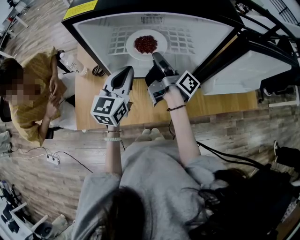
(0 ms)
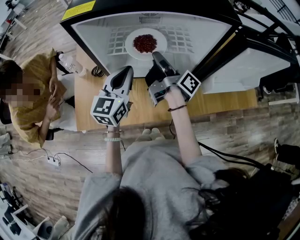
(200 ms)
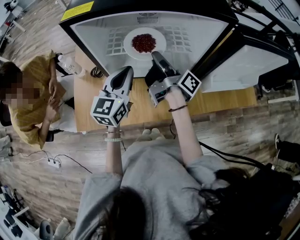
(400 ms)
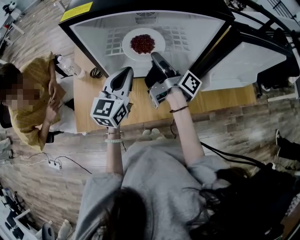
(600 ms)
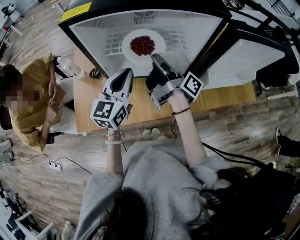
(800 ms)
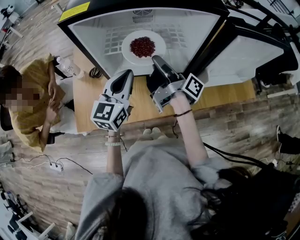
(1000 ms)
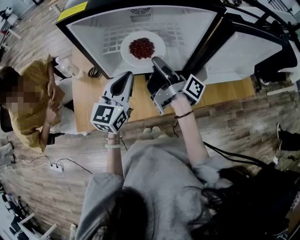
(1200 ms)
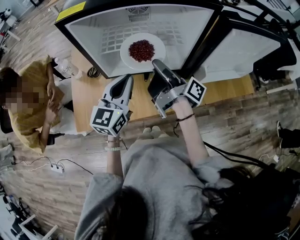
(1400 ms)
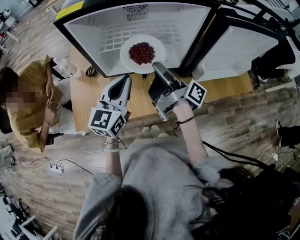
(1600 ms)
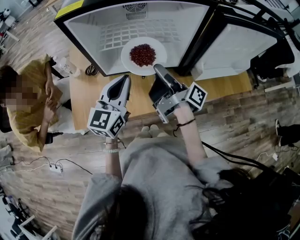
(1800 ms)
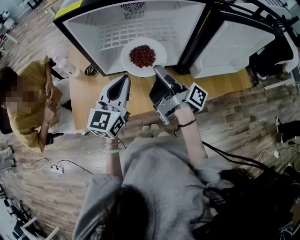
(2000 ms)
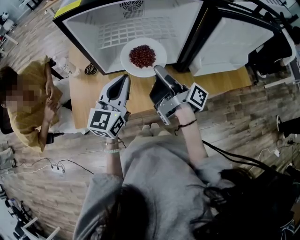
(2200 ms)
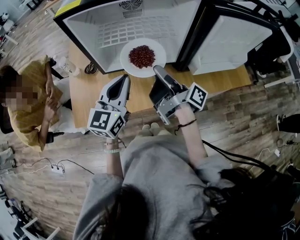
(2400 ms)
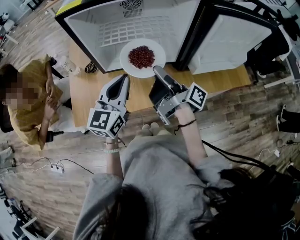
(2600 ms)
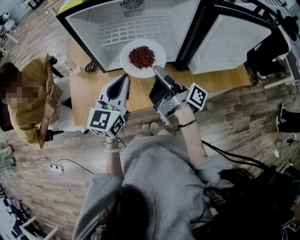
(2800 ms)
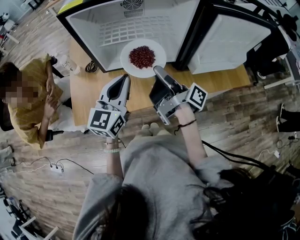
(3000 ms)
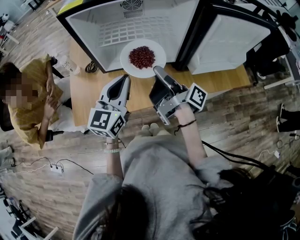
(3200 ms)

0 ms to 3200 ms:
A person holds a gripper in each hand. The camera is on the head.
0 ms to 1600 ms: The two grippers go about 10 cm backward.
1600 ms to 3200 ms: The right gripper heads backward, covering approximately 5 cm.

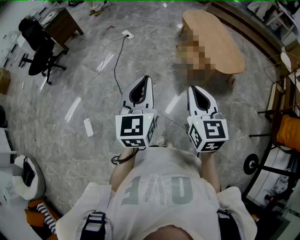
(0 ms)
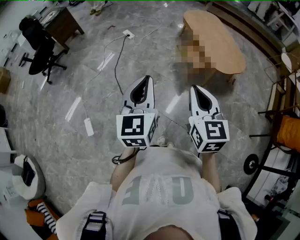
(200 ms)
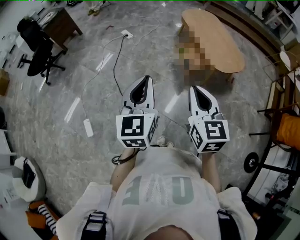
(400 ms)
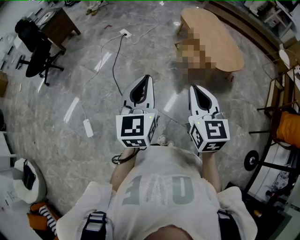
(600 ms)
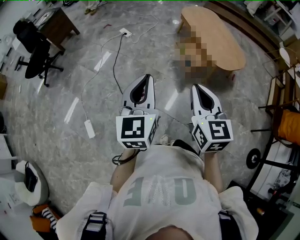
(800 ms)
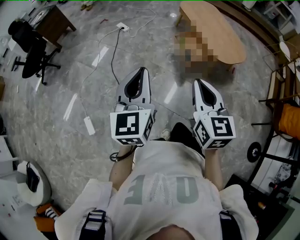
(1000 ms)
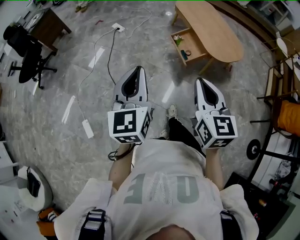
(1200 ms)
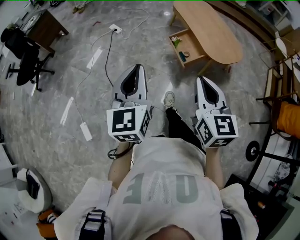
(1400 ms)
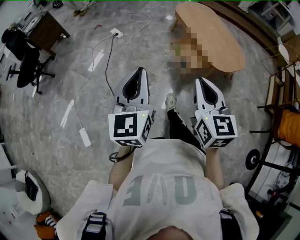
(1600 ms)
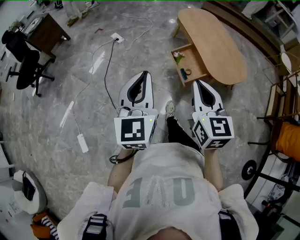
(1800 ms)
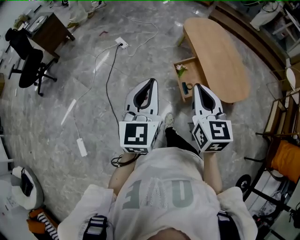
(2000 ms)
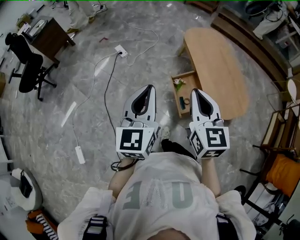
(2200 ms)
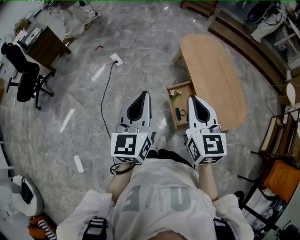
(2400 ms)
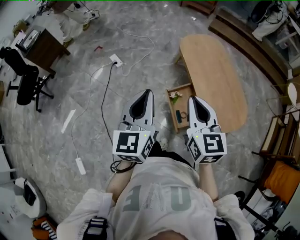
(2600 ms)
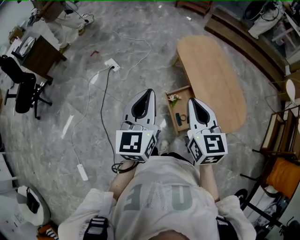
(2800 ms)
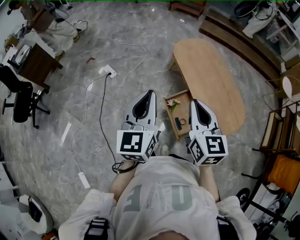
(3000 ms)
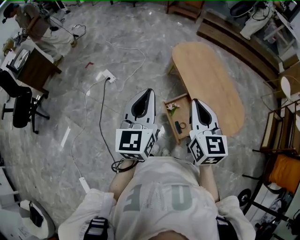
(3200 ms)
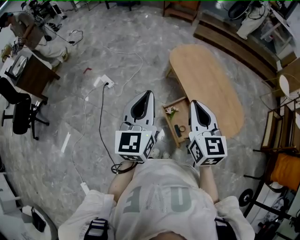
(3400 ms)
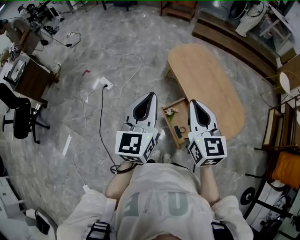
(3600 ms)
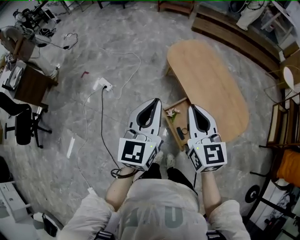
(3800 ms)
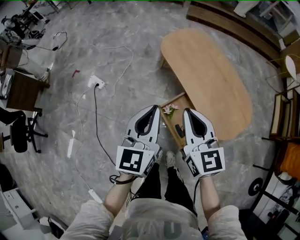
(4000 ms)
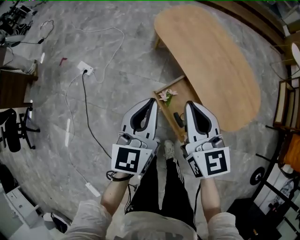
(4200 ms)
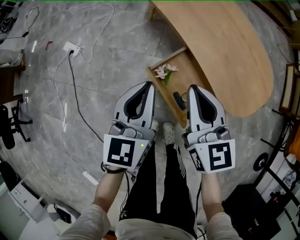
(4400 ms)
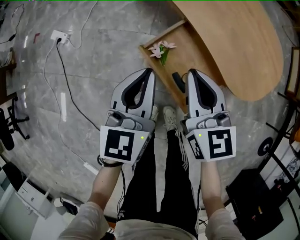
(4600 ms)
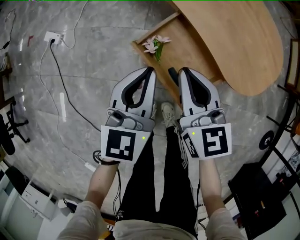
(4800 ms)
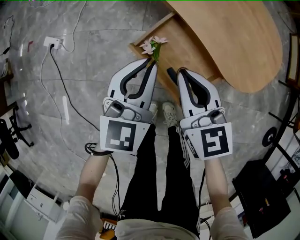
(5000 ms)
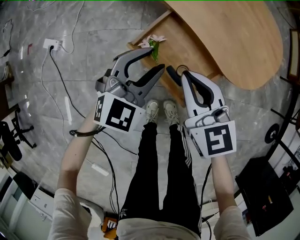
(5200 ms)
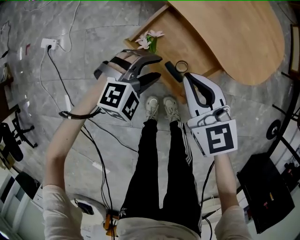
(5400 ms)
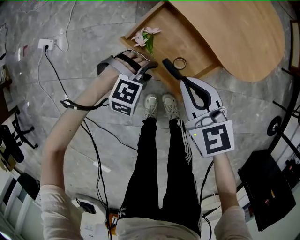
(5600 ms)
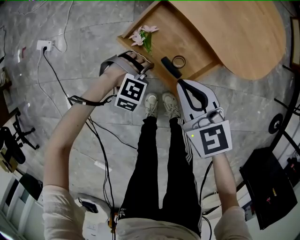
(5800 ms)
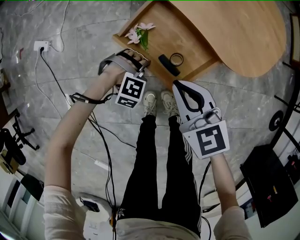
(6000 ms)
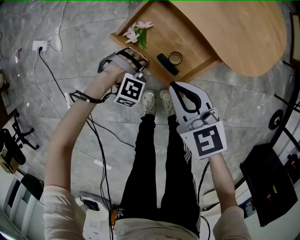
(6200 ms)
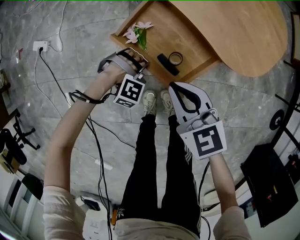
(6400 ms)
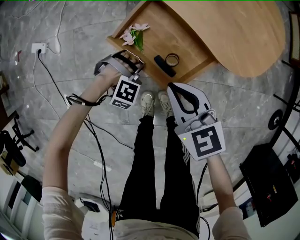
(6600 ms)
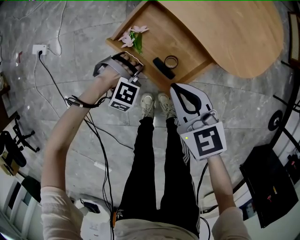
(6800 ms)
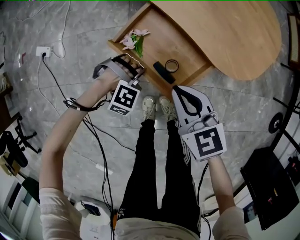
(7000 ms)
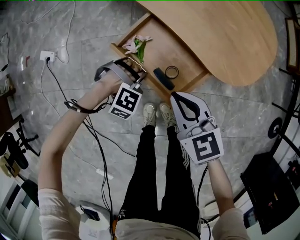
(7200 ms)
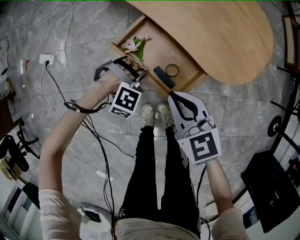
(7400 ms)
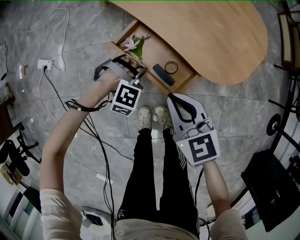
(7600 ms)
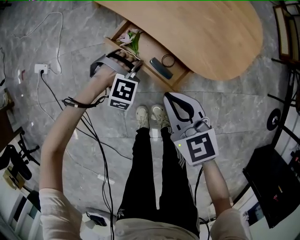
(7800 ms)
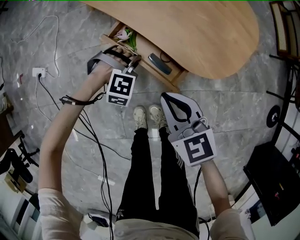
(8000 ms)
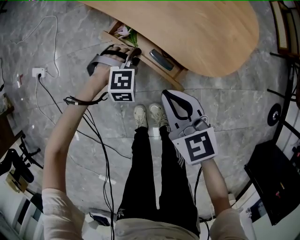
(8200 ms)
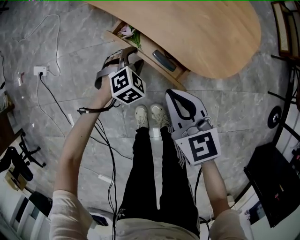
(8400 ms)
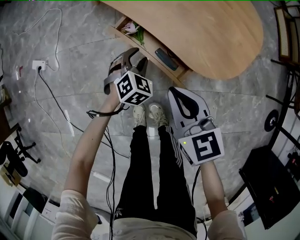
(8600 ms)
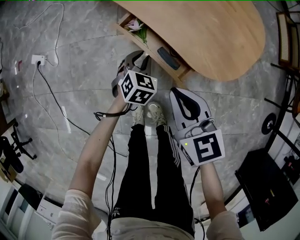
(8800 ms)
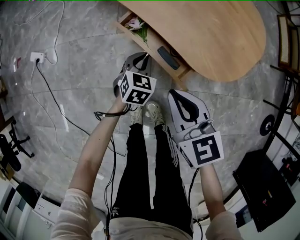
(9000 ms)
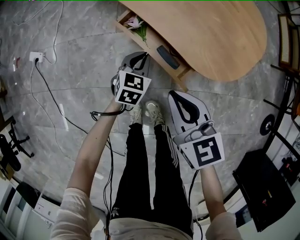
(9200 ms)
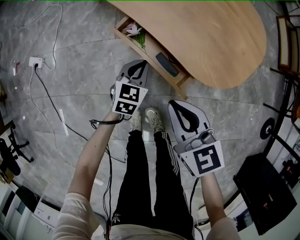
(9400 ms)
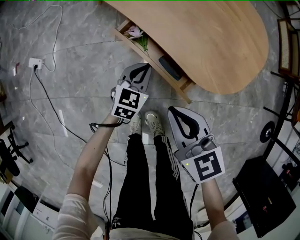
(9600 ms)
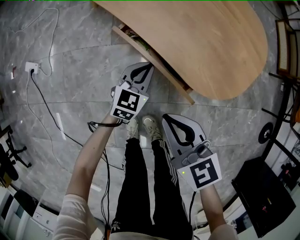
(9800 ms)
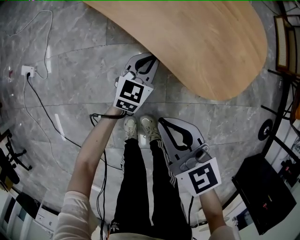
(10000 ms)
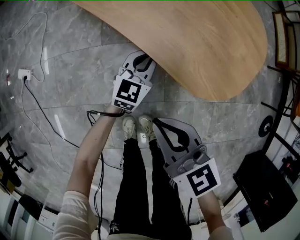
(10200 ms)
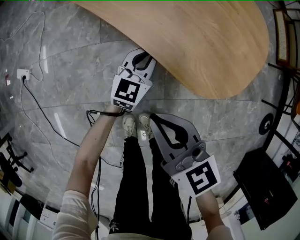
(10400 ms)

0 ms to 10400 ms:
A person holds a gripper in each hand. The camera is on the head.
0 ms to 1400 ms: The two grippers go some 5 cm forward.
1400 ms to 3000 ms: Both grippers are carried forward, about 50 cm.
3000 ms to 4400 ms: The two grippers go approximately 35 cm downward and forward. The left gripper swivels about 20 degrees.
4400 ms to 6000 ms: The right gripper travels downward by about 20 cm. Meanwhile the left gripper goes some 40 cm downward, angles its fingers downward, by some 60 degrees, and opens its fingers.
6000 ms to 7400 ms: The left gripper is displaced upward by about 5 cm, and closes.
7400 ms to 9000 ms: The right gripper changes place by about 5 cm, while the left gripper shifts by approximately 10 cm, rotates around the line of its fingers by roughly 90 degrees, counterclockwise from behind, and opens, then closes again.
9000 ms to 10400 ms: The left gripper is displaced forward and to the right by some 10 cm, and rotates roughly 30 degrees.

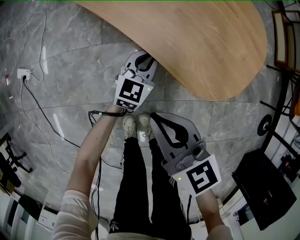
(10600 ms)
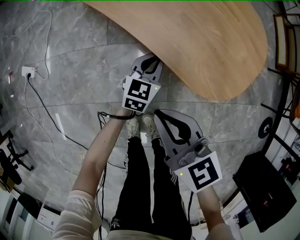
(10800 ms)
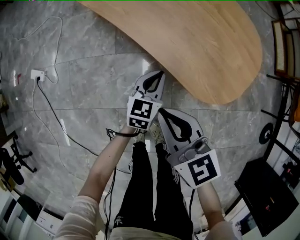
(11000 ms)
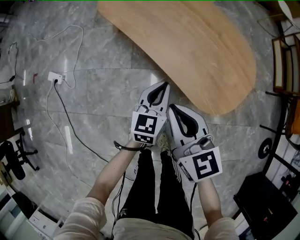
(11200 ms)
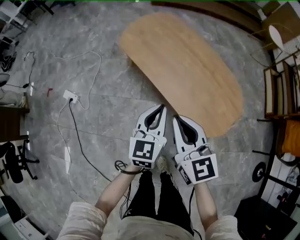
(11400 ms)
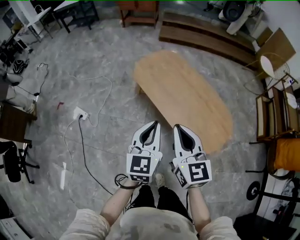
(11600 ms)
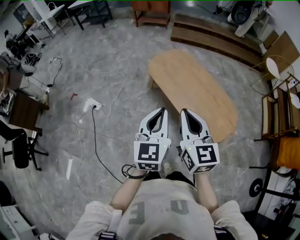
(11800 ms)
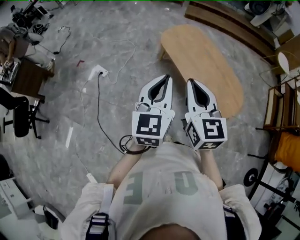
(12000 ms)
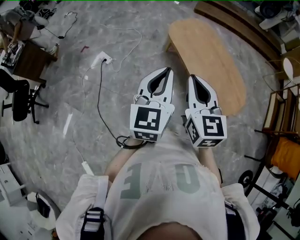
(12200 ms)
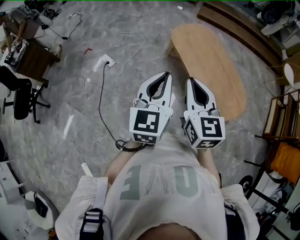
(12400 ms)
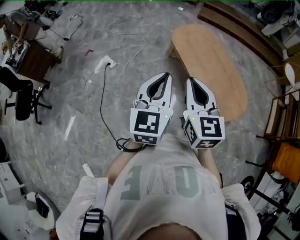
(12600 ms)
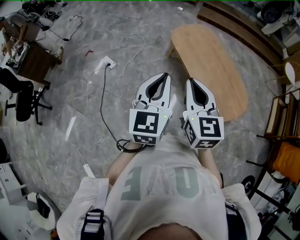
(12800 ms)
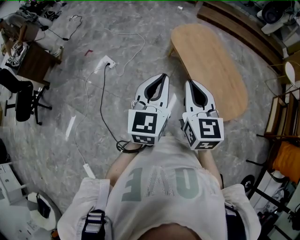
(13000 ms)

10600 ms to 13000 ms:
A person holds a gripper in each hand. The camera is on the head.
10600 ms to 11800 ms: The grippers both shift upward by about 50 cm. The left gripper rotates some 40 degrees. Meanwhile the right gripper swivels about 20 degrees.
11800 ms to 13000 ms: The two grippers go roughly 10 cm to the left and backward.

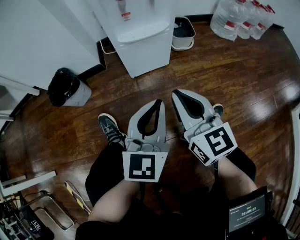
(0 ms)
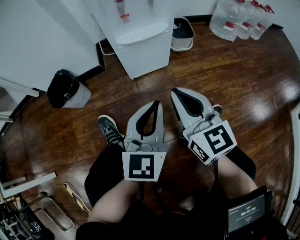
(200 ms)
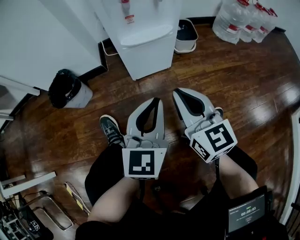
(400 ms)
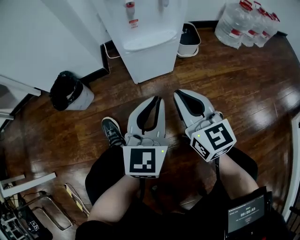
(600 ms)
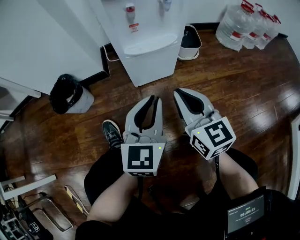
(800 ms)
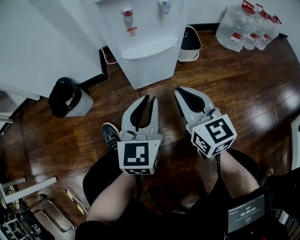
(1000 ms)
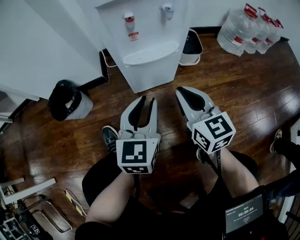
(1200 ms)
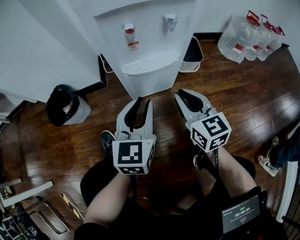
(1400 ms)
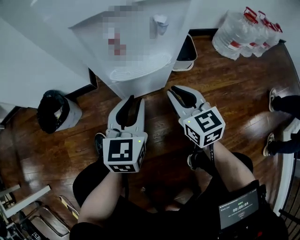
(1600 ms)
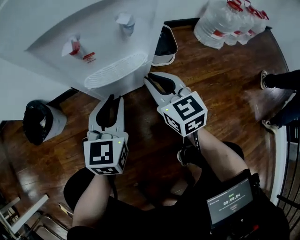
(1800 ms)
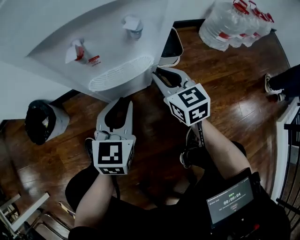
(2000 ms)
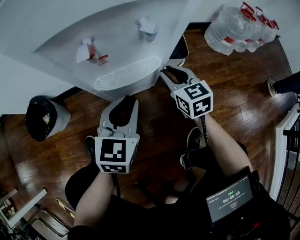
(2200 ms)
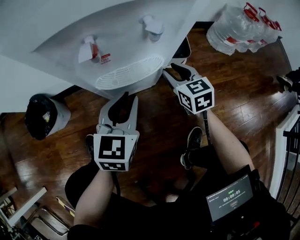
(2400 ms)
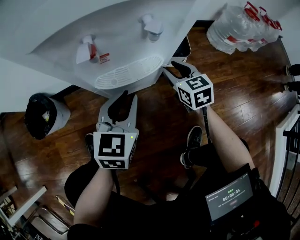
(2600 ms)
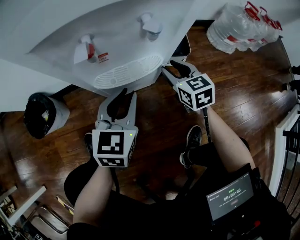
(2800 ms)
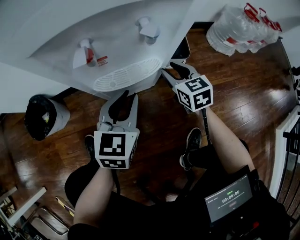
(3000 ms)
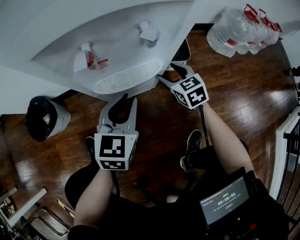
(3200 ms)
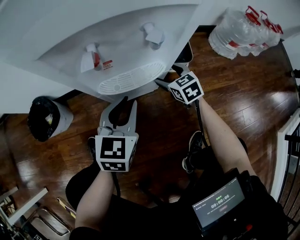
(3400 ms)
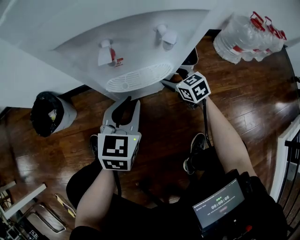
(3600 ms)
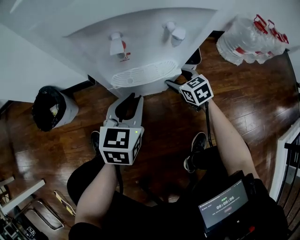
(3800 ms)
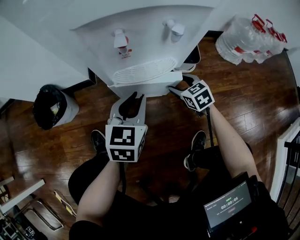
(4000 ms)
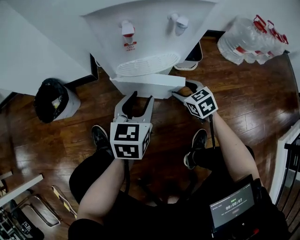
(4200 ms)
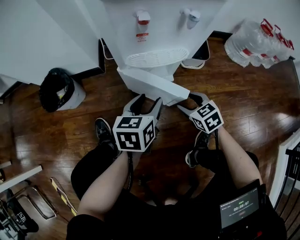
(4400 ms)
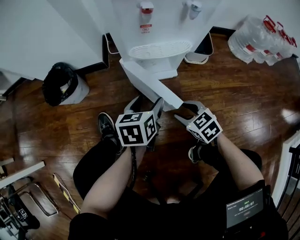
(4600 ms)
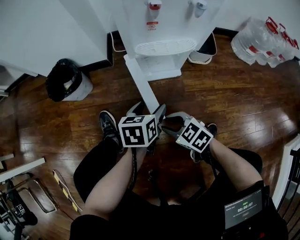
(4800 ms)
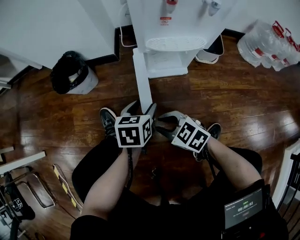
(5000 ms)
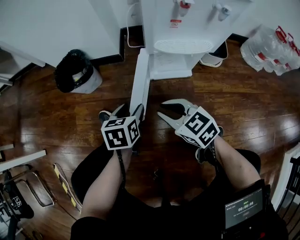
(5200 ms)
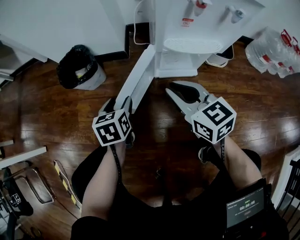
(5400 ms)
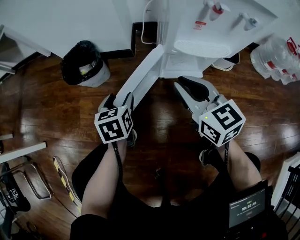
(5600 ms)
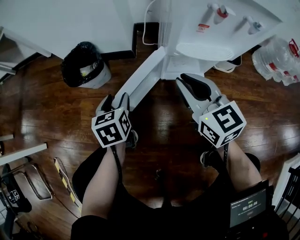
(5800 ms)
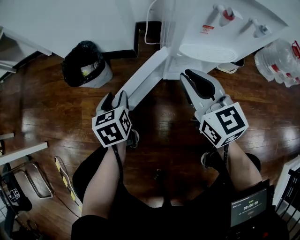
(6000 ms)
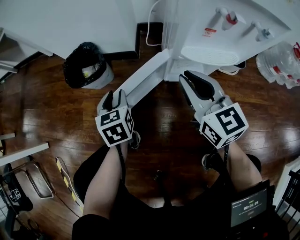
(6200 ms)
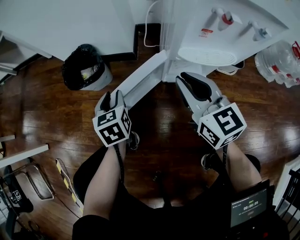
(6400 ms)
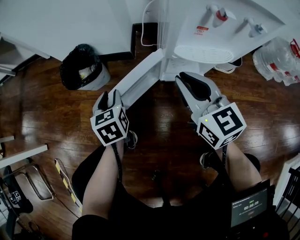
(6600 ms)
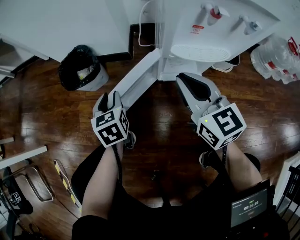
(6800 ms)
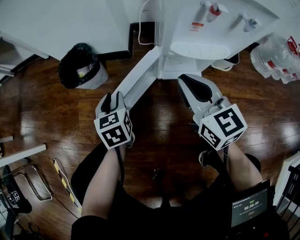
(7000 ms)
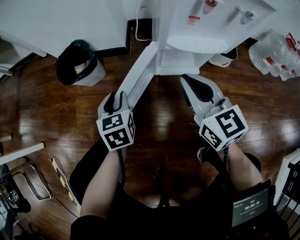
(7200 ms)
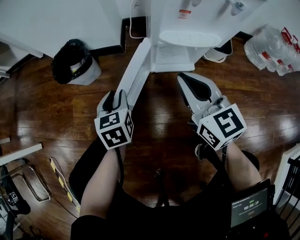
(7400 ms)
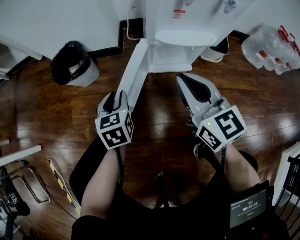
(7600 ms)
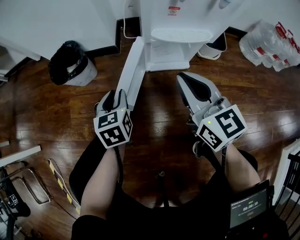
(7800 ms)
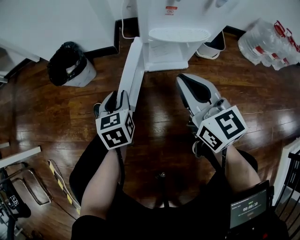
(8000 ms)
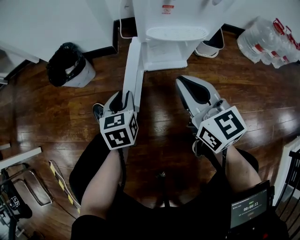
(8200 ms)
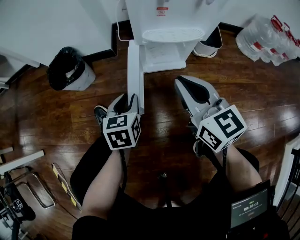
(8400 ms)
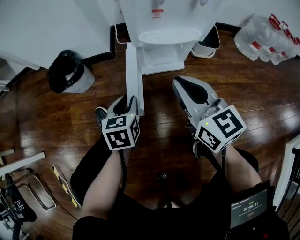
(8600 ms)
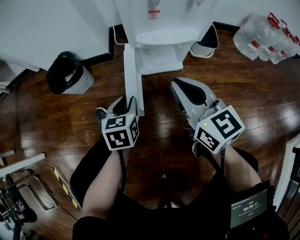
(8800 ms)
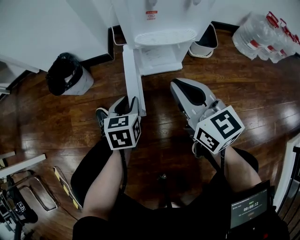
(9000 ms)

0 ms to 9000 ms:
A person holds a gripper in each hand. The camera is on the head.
0 ms to 1600 ms: The left gripper heads forward, covering about 20 cm; the right gripper moves forward and downward, about 25 cm.
1600 ms to 3000 ms: The left gripper goes about 5 cm forward. Meanwhile the right gripper is displaced forward, downward and to the right by some 15 cm, and opens.
3000 ms to 4400 ms: The left gripper goes approximately 5 cm backward, changes its angle by about 30 degrees, and opens its fingers, while the right gripper shifts about 15 cm backward and downward, and changes its angle by some 20 degrees.
4400 ms to 6000 ms: The left gripper travels to the left by roughly 30 cm, and swivels approximately 30 degrees; the right gripper travels upward, to the left and forward by approximately 30 cm, angles its fingers upward, by roughly 40 degrees, and closes up.
6000 ms to 7600 ms: The left gripper goes roughly 10 cm backward and to the right. The right gripper heads backward, covering approximately 10 cm.
7600 ms to 9000 ms: The left gripper is displaced to the right by about 10 cm.
